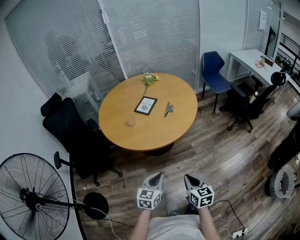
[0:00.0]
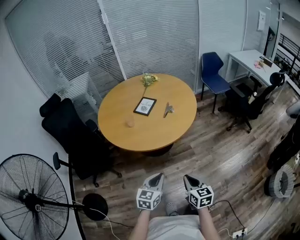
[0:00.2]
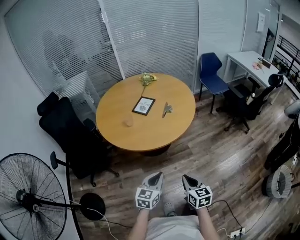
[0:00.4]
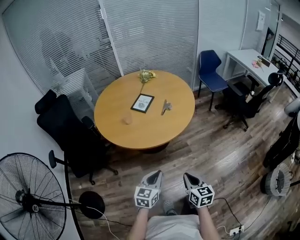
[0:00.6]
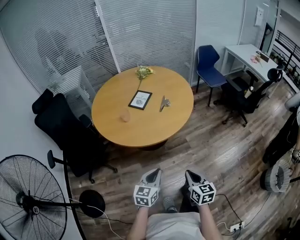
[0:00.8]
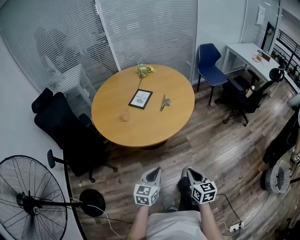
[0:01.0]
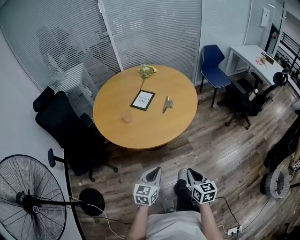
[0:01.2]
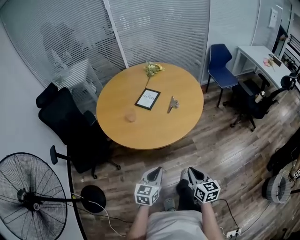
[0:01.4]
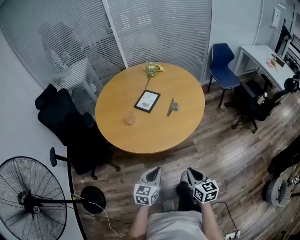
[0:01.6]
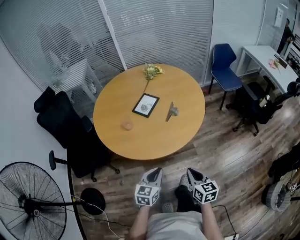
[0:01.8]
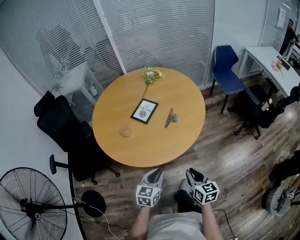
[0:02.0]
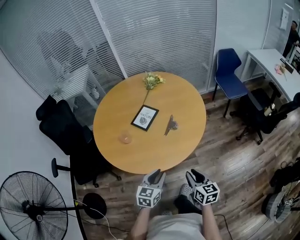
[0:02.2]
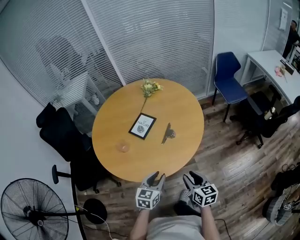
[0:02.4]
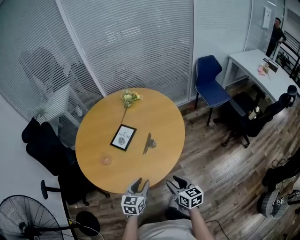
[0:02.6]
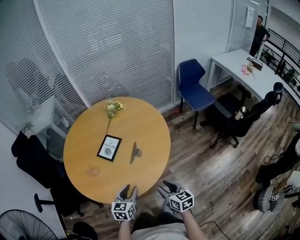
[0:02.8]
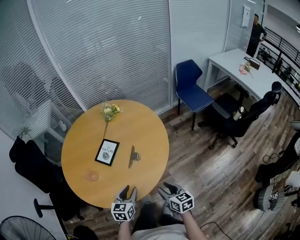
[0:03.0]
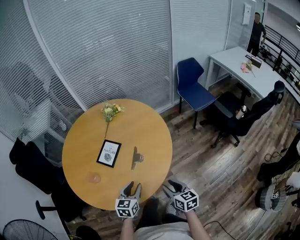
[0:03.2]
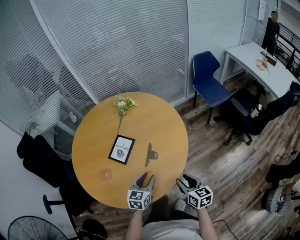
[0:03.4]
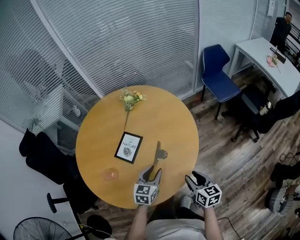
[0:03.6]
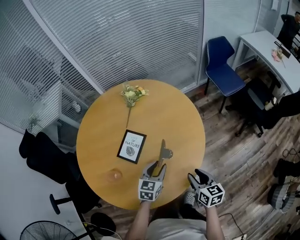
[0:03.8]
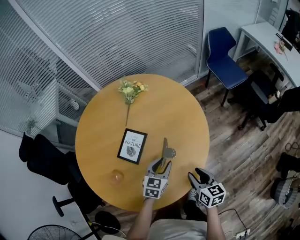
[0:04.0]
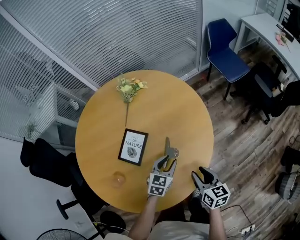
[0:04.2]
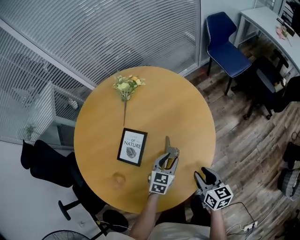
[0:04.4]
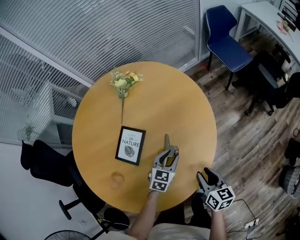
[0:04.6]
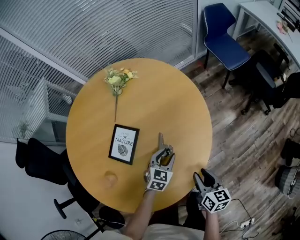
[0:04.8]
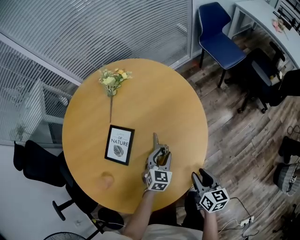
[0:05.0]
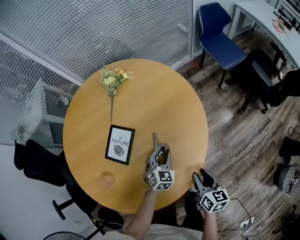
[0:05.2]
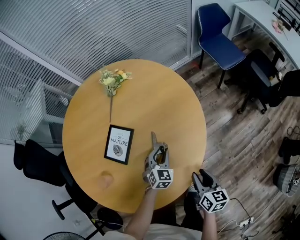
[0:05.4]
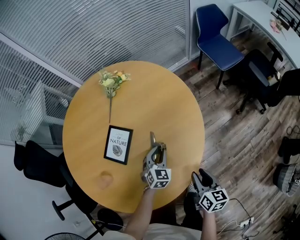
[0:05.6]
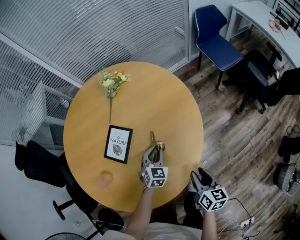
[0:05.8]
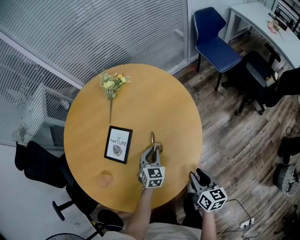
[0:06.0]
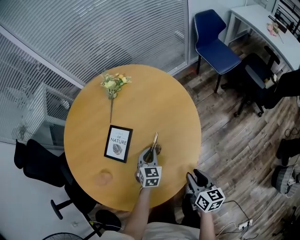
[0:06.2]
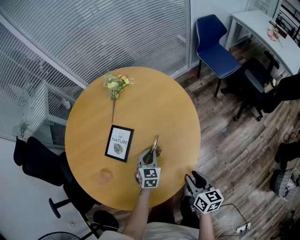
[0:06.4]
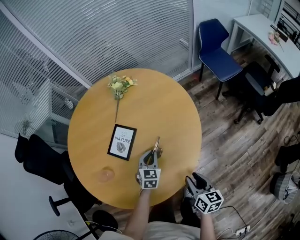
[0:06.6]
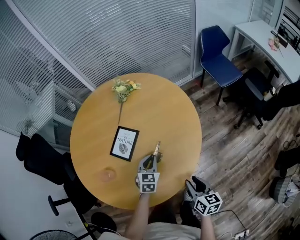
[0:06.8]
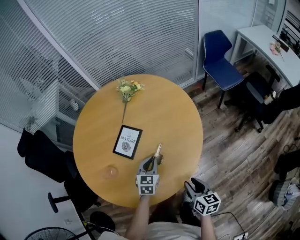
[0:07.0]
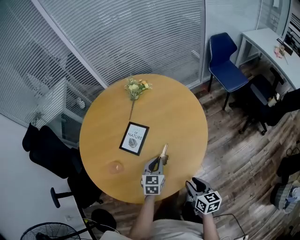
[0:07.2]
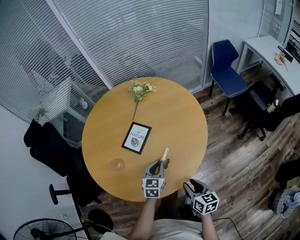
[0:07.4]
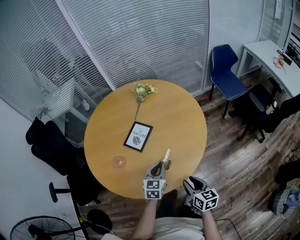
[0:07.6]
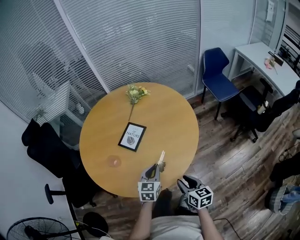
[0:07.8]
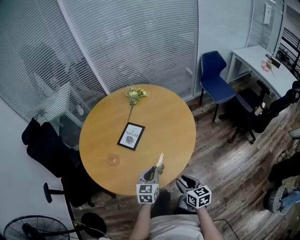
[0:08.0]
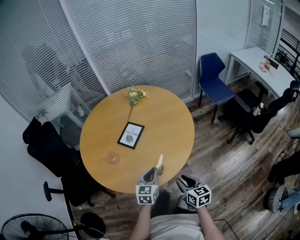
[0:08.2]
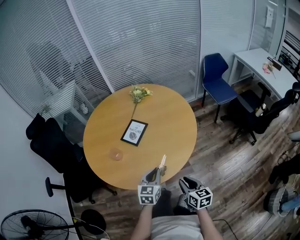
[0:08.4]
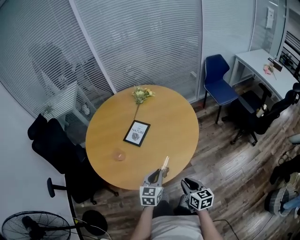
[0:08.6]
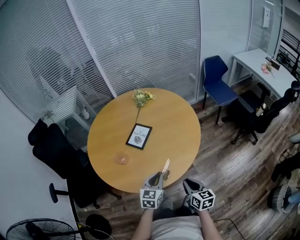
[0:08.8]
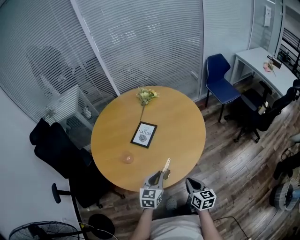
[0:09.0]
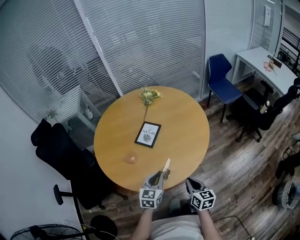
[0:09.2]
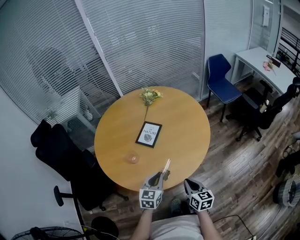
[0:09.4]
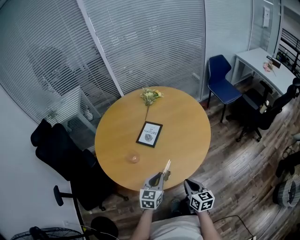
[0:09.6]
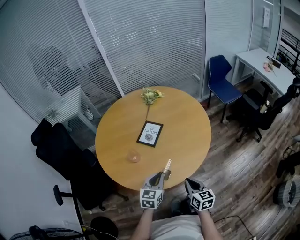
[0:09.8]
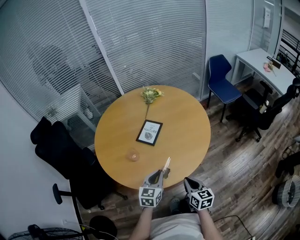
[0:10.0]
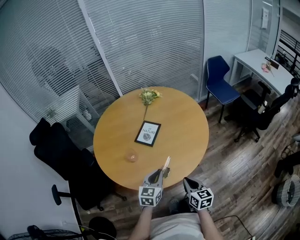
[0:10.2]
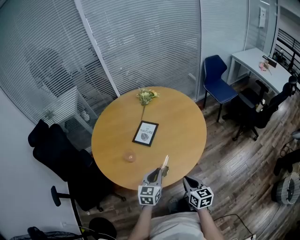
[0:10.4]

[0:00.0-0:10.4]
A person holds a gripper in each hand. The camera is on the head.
0:00.0 to 0:01.4: Both grippers move forward, about 10 cm.
0:01.4 to 0:03.0: Both grippers move forward and to the right, roughly 30 cm. The left gripper opens its fingers, while the right gripper opens.
0:03.0 to 0:04.4: The right gripper moves forward and downward, roughly 15 cm. The left gripper travels forward and downward by about 25 cm, and swivels approximately 20 degrees.
0:04.4 to 0:06.0: The right gripper shifts by approximately 5 cm. The left gripper turns by roughly 20 degrees.
0:06.0 to 0:07.4: The left gripper shifts roughly 15 cm backward, upward and to the left, and swivels roughly 20 degrees. The right gripper travels backward and to the left by roughly 10 cm.
0:07.4 to 0:09.0: The left gripper heads backward, upward and to the left, covering about 20 cm; the right gripper goes roughly 10 cm backward and to the left, and closes its fingers.
0:09.0 to 0:10.4: The right gripper shifts about 5 cm to the left.

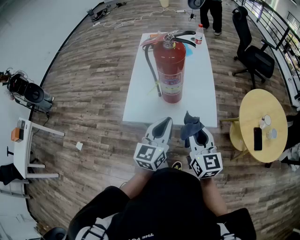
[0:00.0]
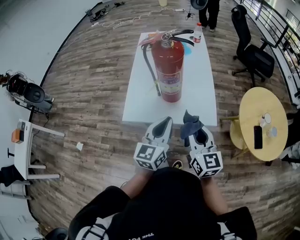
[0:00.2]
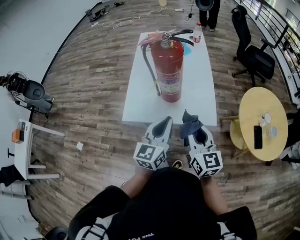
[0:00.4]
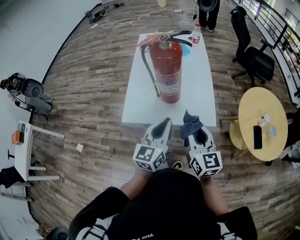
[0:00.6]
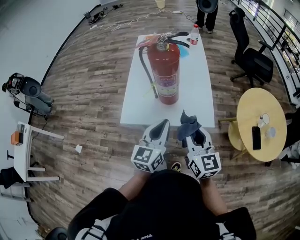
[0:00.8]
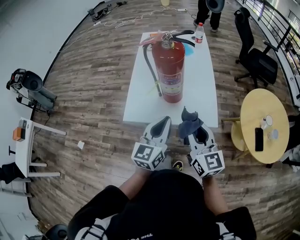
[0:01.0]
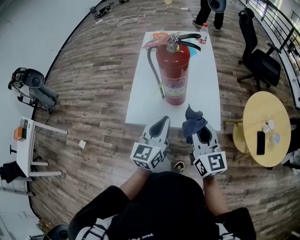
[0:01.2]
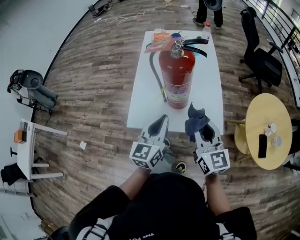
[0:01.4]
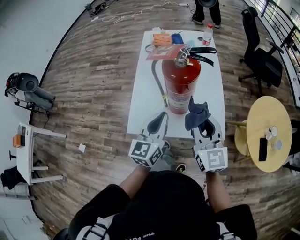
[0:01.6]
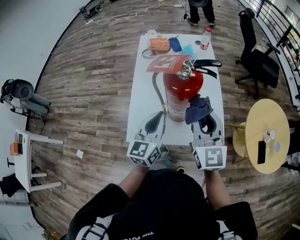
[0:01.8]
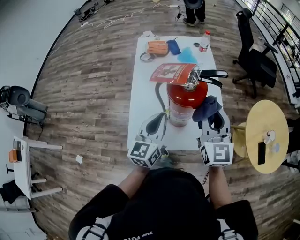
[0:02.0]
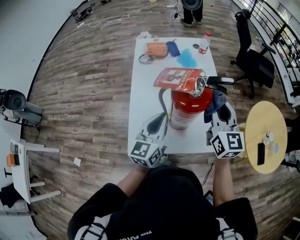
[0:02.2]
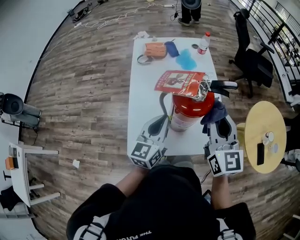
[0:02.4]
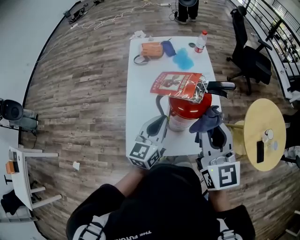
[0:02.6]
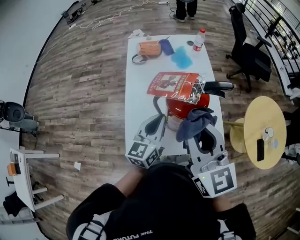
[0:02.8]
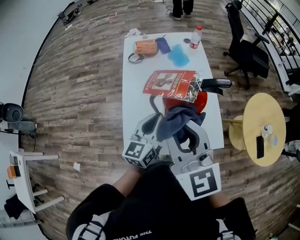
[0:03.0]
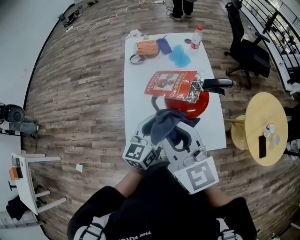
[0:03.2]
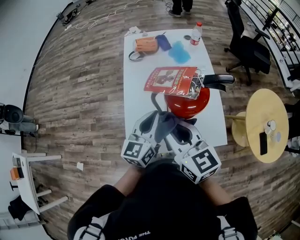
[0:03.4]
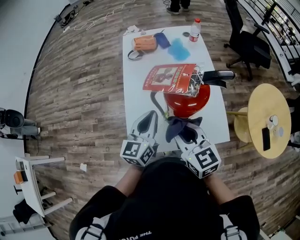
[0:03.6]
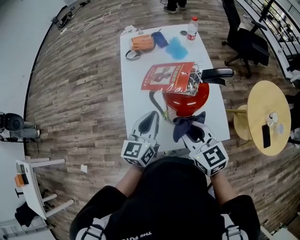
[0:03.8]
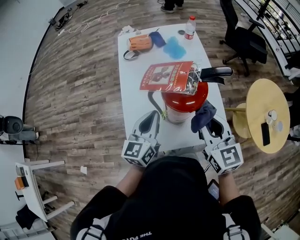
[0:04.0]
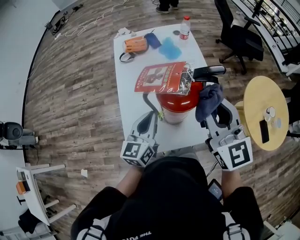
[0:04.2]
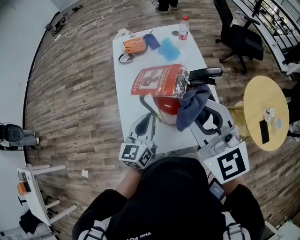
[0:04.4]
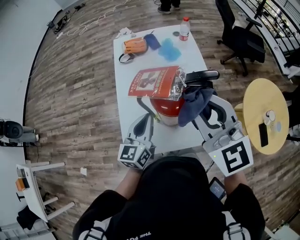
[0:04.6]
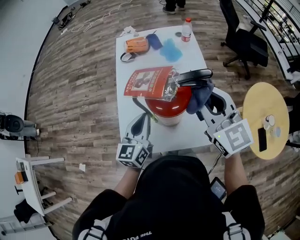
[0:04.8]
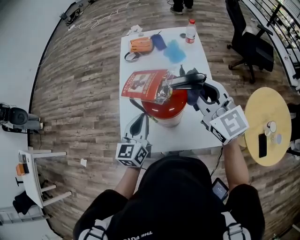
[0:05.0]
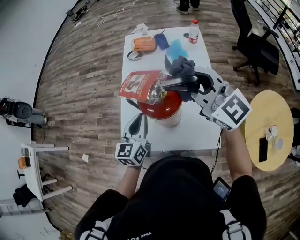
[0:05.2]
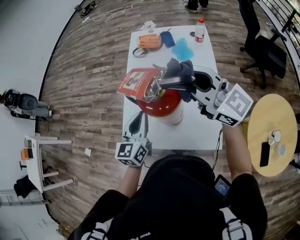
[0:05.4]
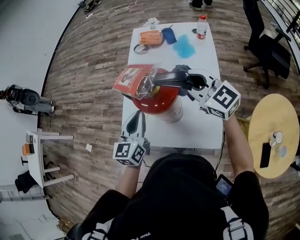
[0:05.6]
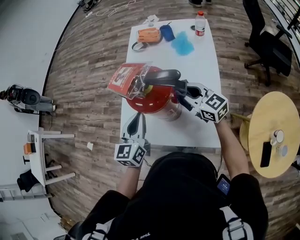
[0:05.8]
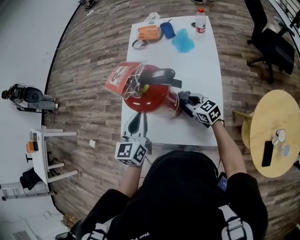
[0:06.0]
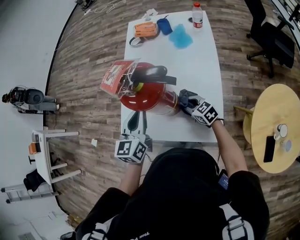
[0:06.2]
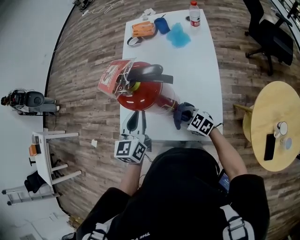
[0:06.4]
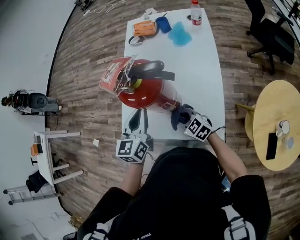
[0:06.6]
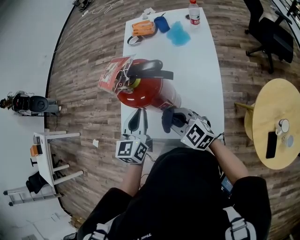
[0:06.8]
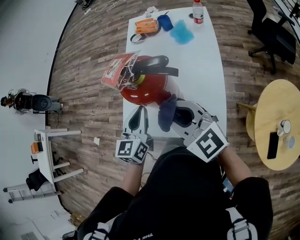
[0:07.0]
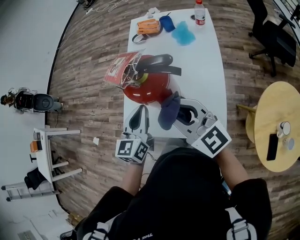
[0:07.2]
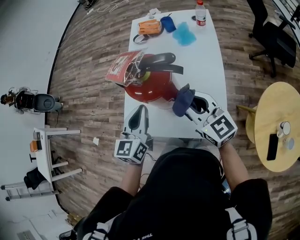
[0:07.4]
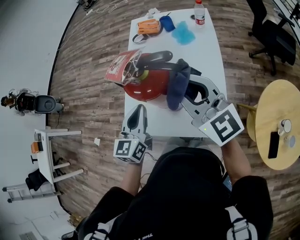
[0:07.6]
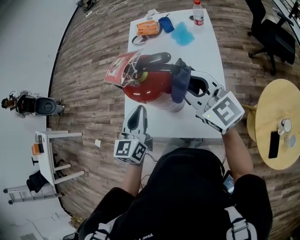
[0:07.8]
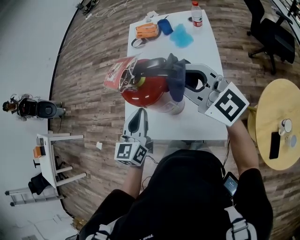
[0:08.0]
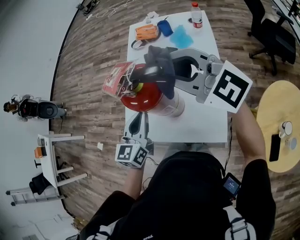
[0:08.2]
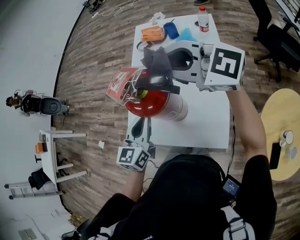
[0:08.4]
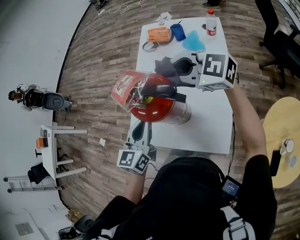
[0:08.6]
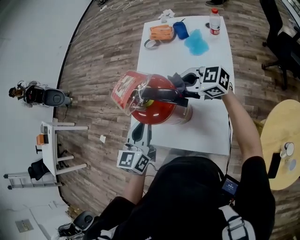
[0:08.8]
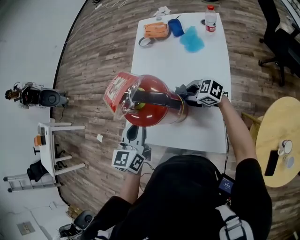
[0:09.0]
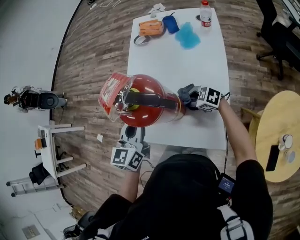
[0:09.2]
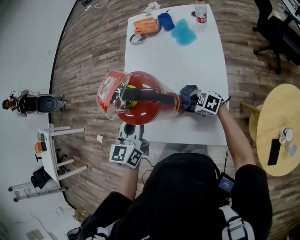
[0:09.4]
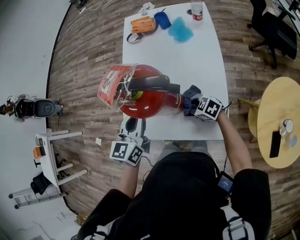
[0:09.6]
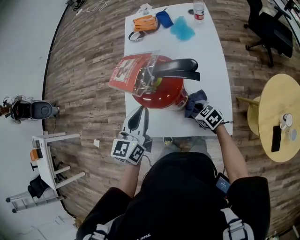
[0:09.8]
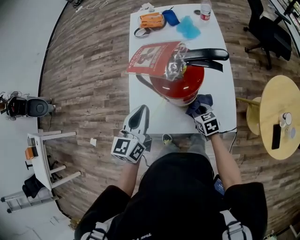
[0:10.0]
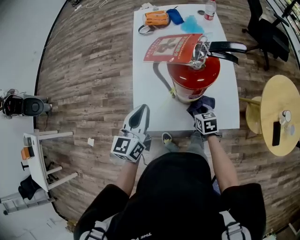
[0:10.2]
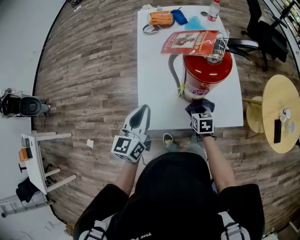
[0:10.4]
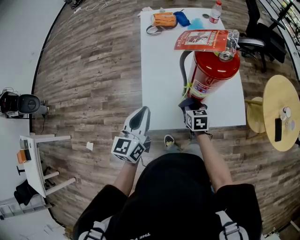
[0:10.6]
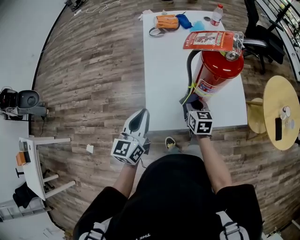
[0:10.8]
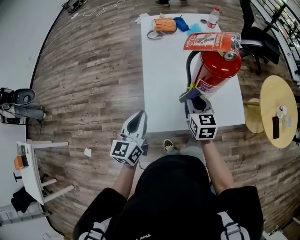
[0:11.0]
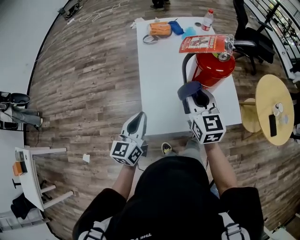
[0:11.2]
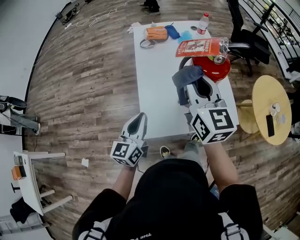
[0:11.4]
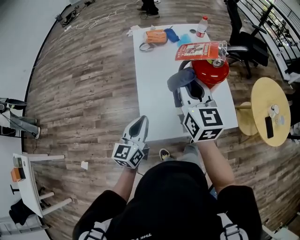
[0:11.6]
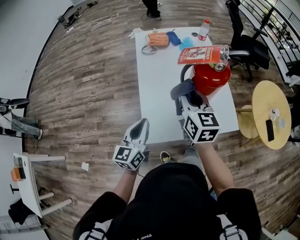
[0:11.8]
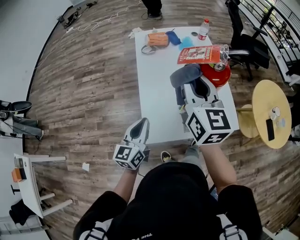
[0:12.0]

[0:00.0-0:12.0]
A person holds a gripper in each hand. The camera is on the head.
0:00.0 to 0:01.6: The left gripper travels forward and to the left by approximately 15 cm. The right gripper moves forward and upward, roughly 15 cm.
0:01.6 to 0:03.0: The right gripper is displaced to the left, upward and forward by approximately 15 cm; the left gripper goes roughly 10 cm forward.
0:03.0 to 0:04.4: The right gripper is displaced to the right by roughly 5 cm, and travels downward and back again, about 15 cm each way.
0:04.4 to 0:06.0: The left gripper changes its angle by approximately 20 degrees; the right gripper shifts approximately 35 cm downward, and changes its angle by roughly 50 degrees.
0:06.0 to 0:07.6: The right gripper goes up and down, approximately 35 cm each way, reversing 3 times, and turns by some 40 degrees.
0:07.6 to 0:09.0: The right gripper is displaced downward by roughly 30 cm, and tips its fingers downward by roughly 40 degrees.
0:09.0 to 0:10.4: The left gripper changes place by about 15 cm. The right gripper moves about 15 cm, and swivels some 70 degrees.
0:10.4 to 0:12.0: The right gripper swings up and down, about 40 cm each way, with 2 reversals, and points its fingers about 50 degrees further upward. Meanwhile the left gripper moves to the left, approximately 5 cm.

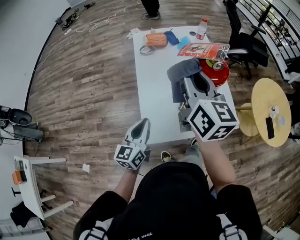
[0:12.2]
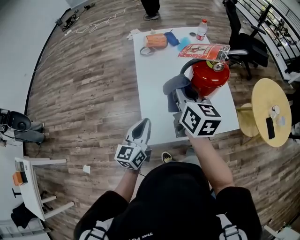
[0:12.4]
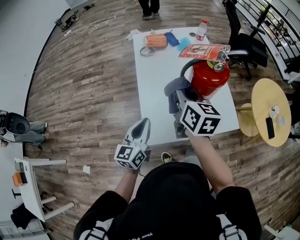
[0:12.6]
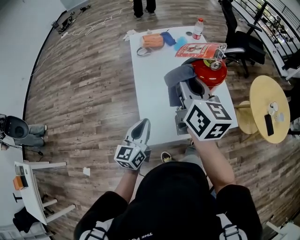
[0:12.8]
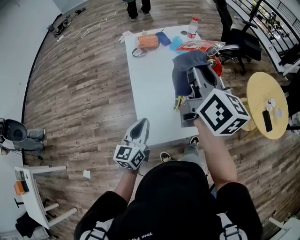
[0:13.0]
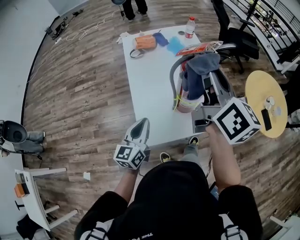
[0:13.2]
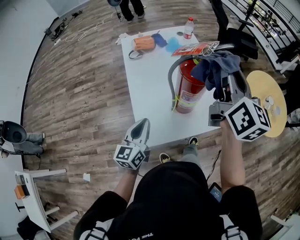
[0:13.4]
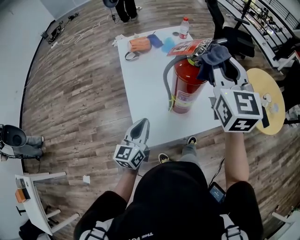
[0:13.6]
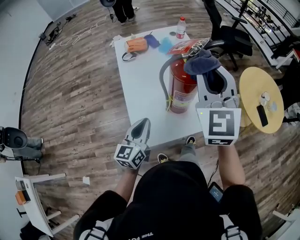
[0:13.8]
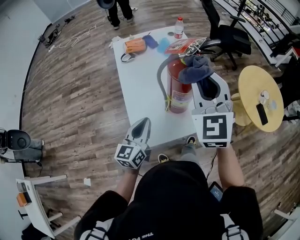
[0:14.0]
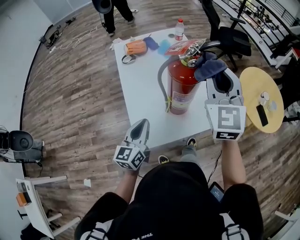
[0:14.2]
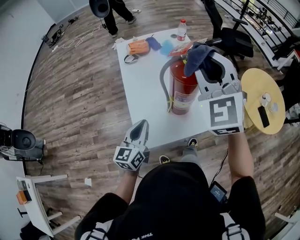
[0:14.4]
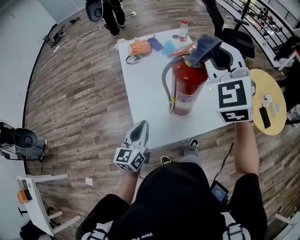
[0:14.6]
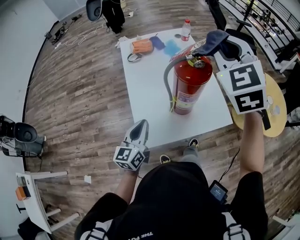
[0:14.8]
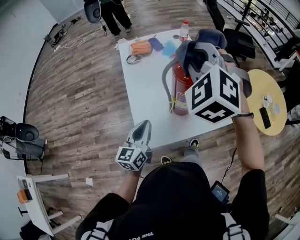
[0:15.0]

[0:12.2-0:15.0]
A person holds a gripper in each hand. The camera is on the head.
0:12.2 to 0:13.6: The right gripper goes some 15 cm to the right, and swivels approximately 40 degrees.
0:13.6 to 0:15.0: The right gripper is displaced to the left by about 10 cm, and twists approximately 50 degrees counterclockwise, seen from behind.
